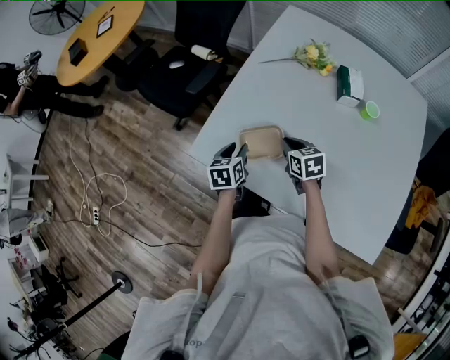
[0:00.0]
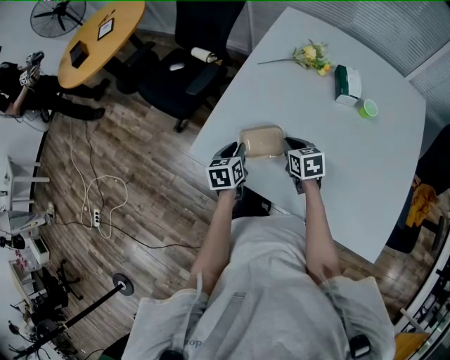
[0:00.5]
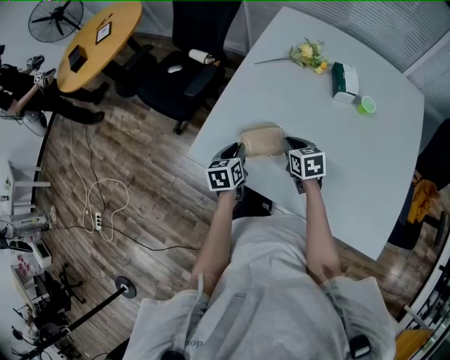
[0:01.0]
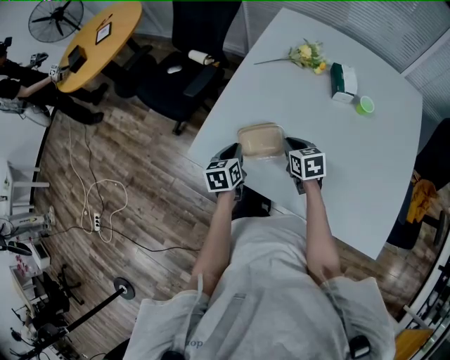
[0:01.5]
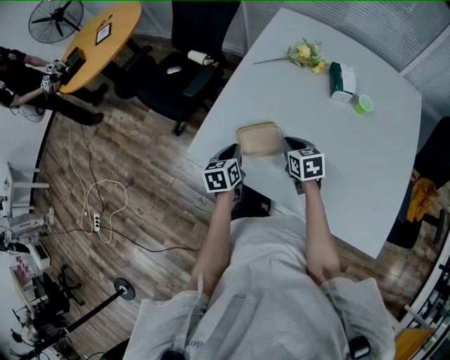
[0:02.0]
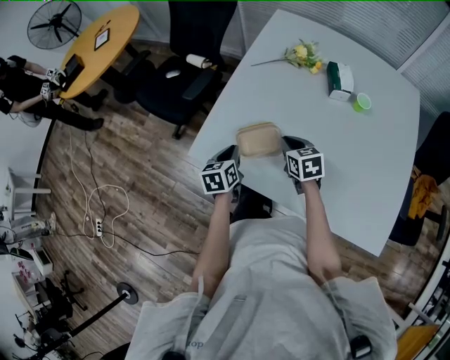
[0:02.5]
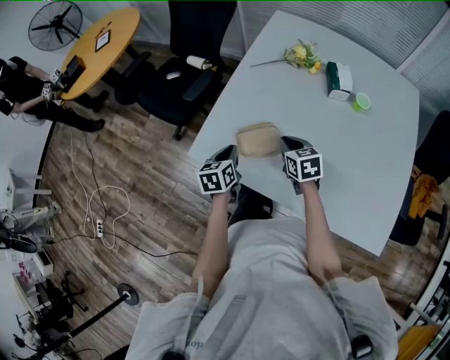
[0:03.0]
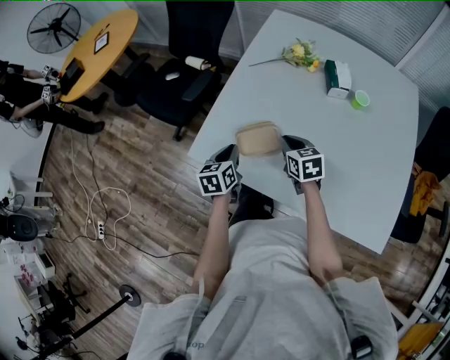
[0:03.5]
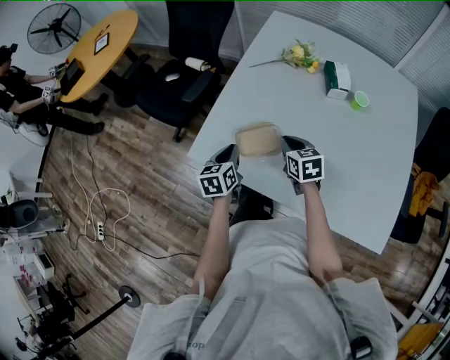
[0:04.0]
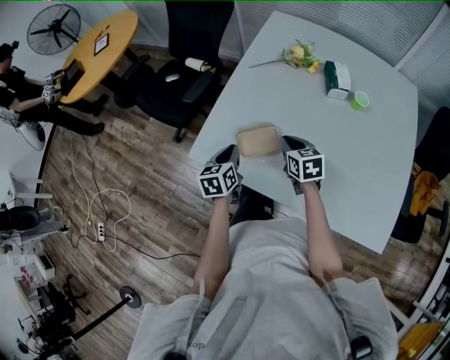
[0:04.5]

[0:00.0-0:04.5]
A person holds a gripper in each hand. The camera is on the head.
0:00.0 to 0:02.0: The left gripper closes.
0:02.0 to 0:04.5: There are only small adjustments of the grippers.

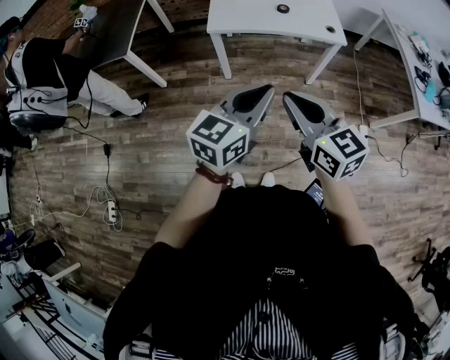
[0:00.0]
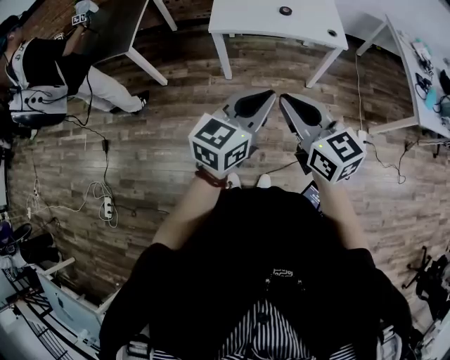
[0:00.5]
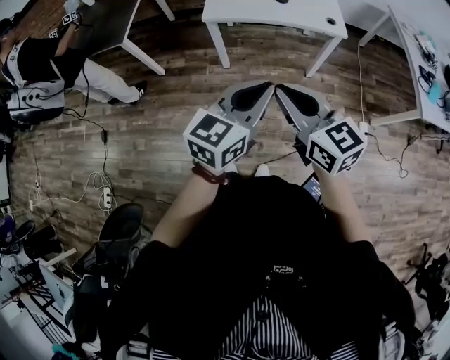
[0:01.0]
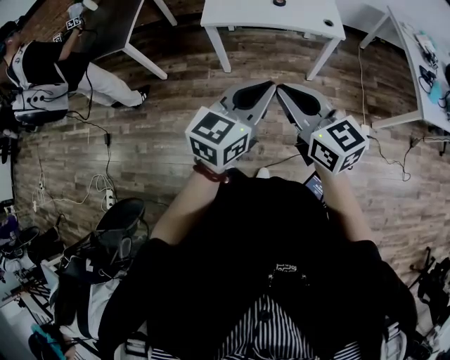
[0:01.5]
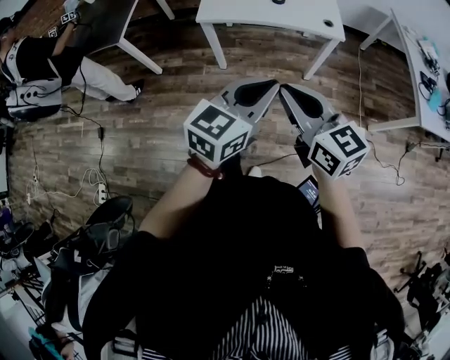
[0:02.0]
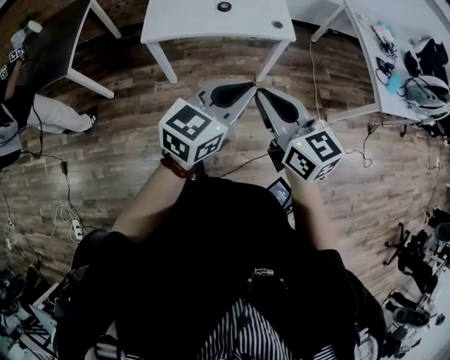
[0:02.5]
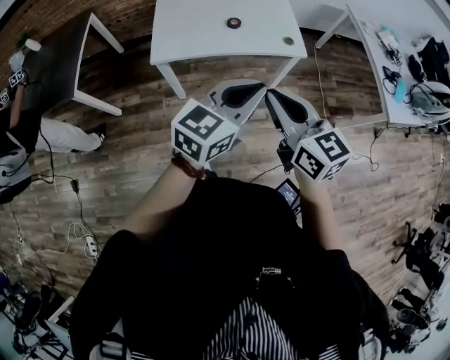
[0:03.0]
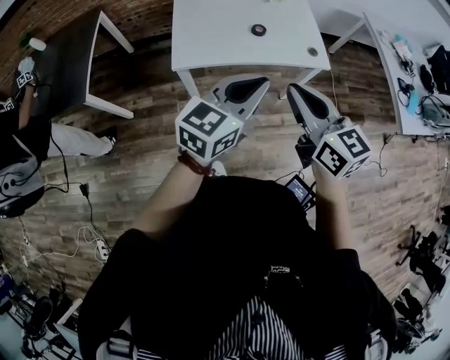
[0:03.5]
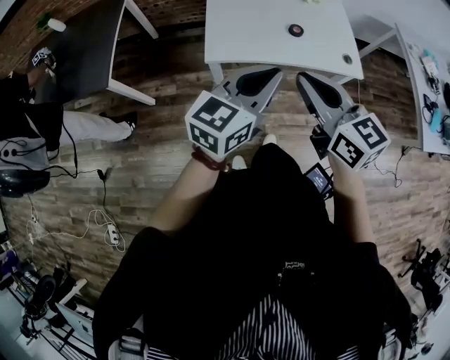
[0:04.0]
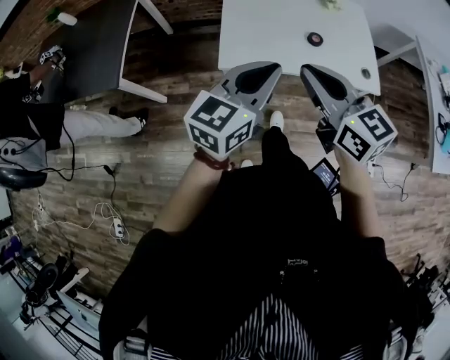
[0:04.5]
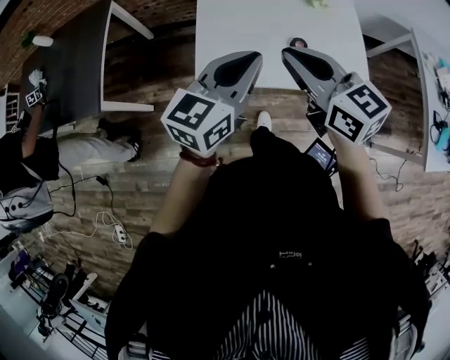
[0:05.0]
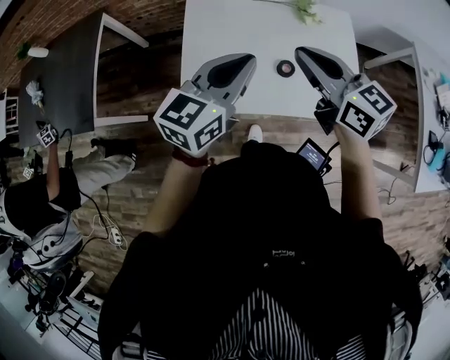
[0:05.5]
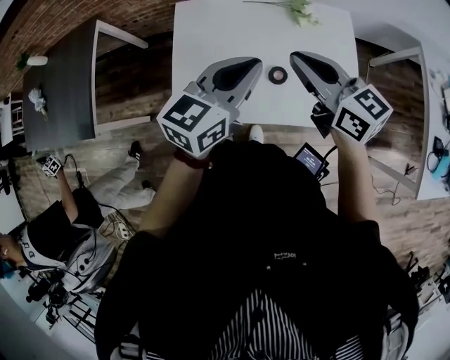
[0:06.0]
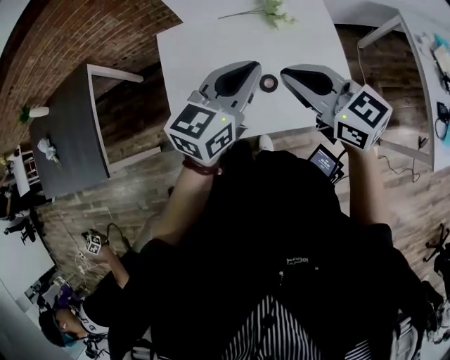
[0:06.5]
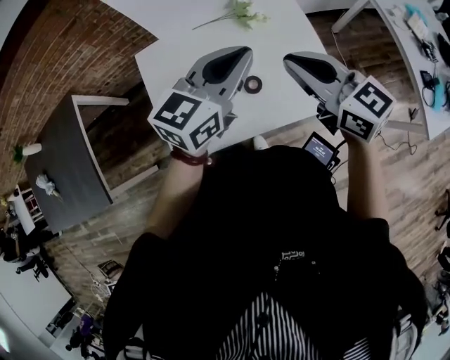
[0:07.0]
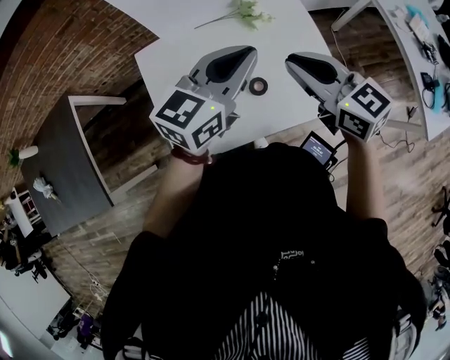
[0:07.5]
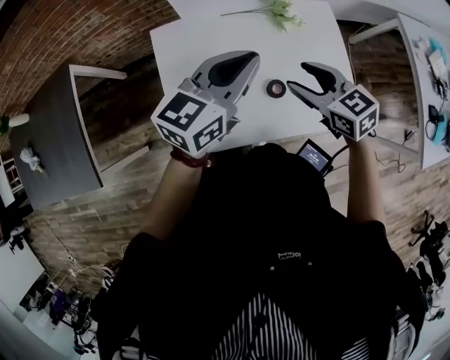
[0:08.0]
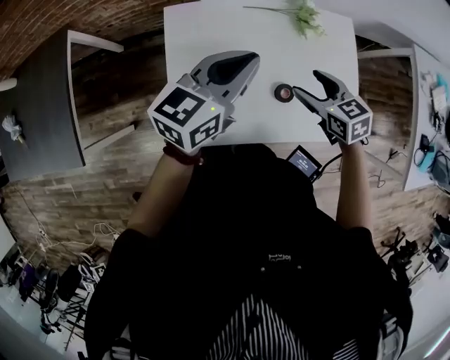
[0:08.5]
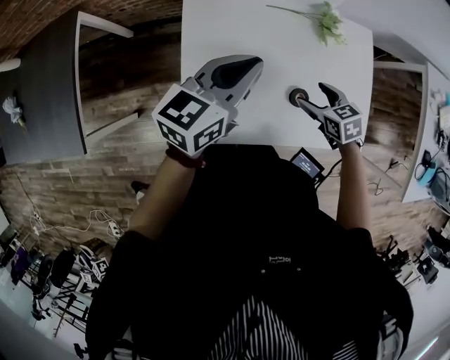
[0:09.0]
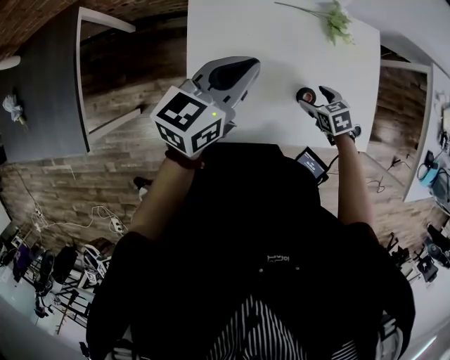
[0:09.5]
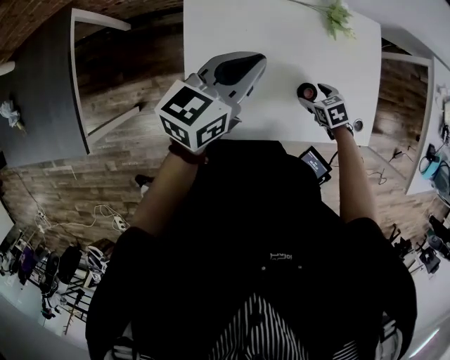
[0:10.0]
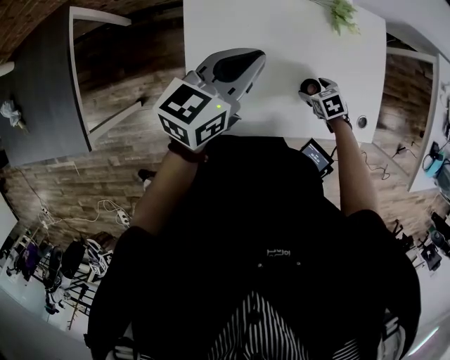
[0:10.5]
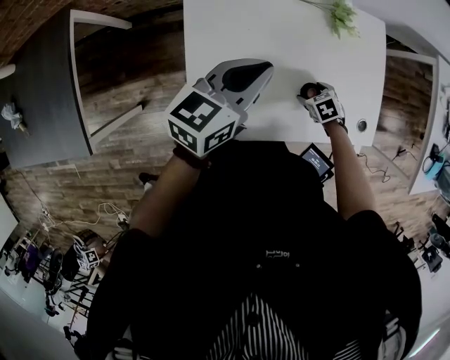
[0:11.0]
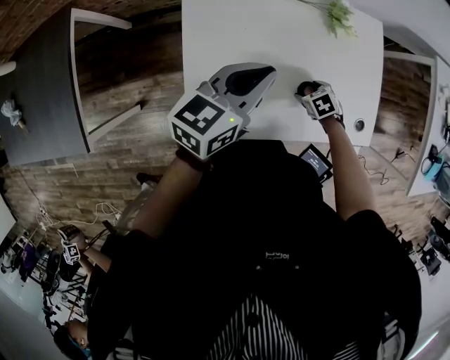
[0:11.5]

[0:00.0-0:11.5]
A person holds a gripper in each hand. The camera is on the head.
0:00.0 to 0:02.0: The two grippers go roughly 10 cm to the right.
0:02.0 to 0:04.0: The two grippers go about 35 cm forward and to the left.
0:04.0 to 0:06.0: The right gripper goes roughly 40 cm forward and to the right, while the left gripper travels forward by about 35 cm.
0:06.0 to 0:07.5: The left gripper moves forward and to the right, some 10 cm. Meanwhile the right gripper moves about 5 cm.
0:07.5 to 0:09.5: The right gripper goes approximately 35 cm downward, points its fingers roughly 50 degrees further downward, and opens its fingers. Meanwhile the left gripper moves to the left and downward, roughly 25 cm, and changes its angle by roughly 20 degrees.
0:09.5 to 0:11.5: The right gripper travels downward by roughly 10 cm.

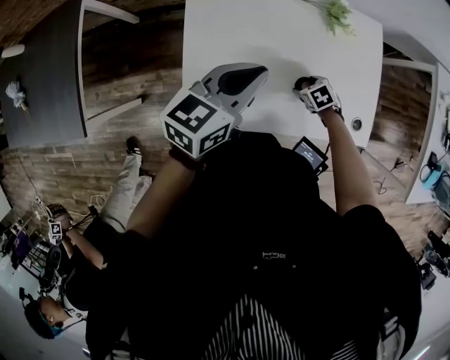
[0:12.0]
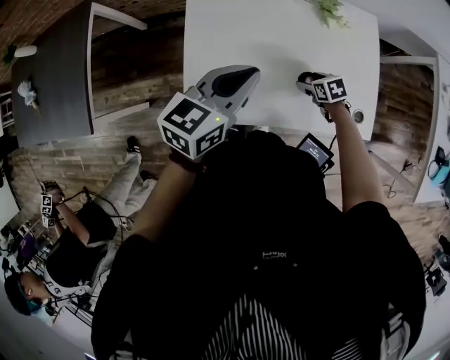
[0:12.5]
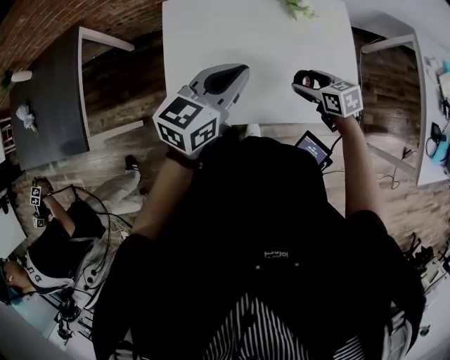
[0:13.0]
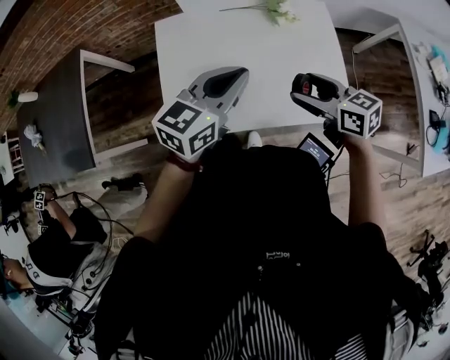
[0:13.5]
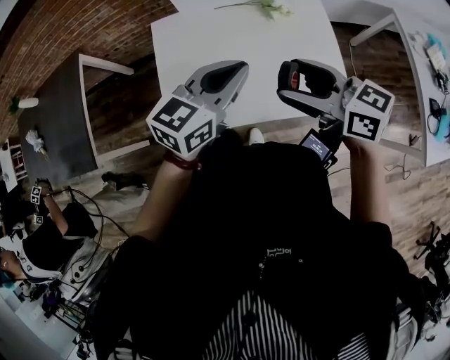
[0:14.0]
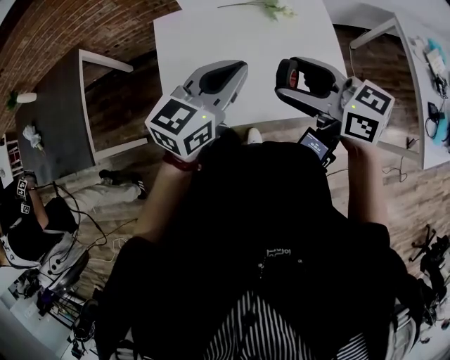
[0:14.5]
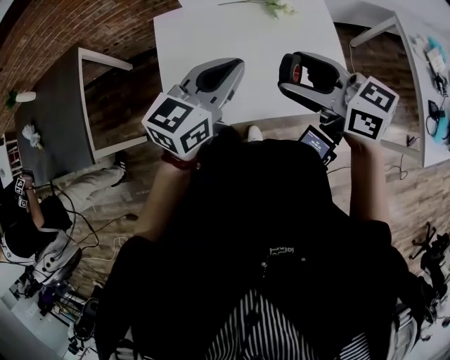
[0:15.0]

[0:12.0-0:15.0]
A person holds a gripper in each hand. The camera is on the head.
0:12.0 to 0:13.5: The right gripper shifts roughly 30 cm upward, and tilts its fingers approximately 50 degrees upward; the left gripper shifts by roughly 15 cm.
0:13.5 to 0:15.0: The right gripper is displaced upward and to the left by roughly 15 cm.

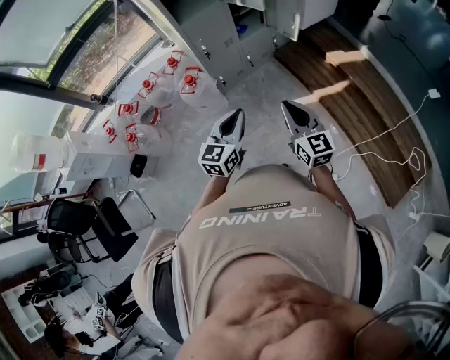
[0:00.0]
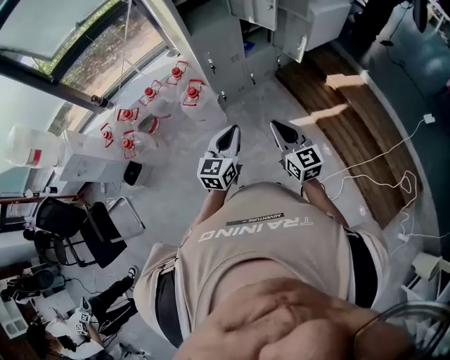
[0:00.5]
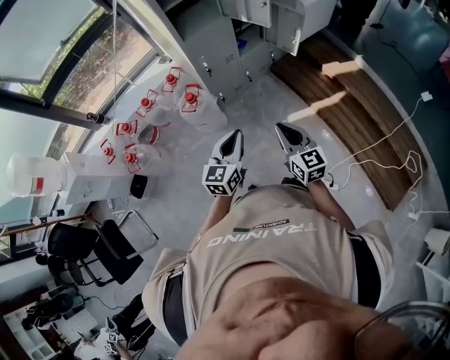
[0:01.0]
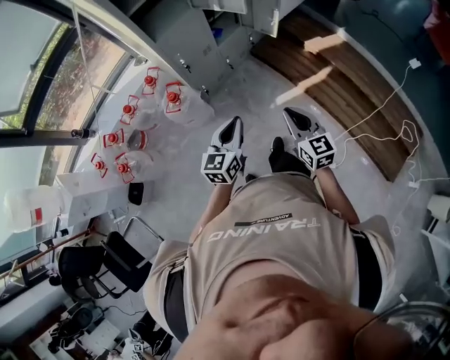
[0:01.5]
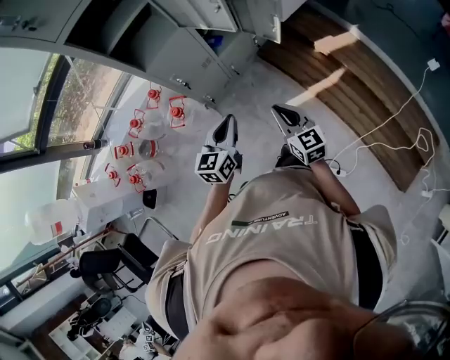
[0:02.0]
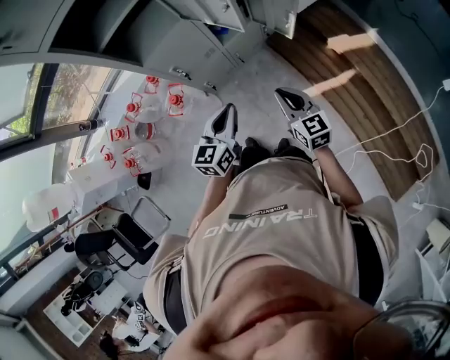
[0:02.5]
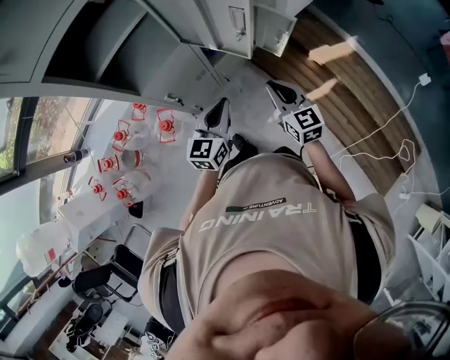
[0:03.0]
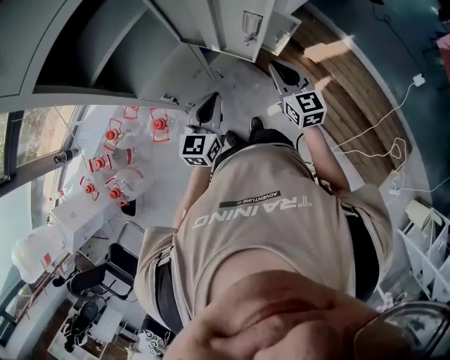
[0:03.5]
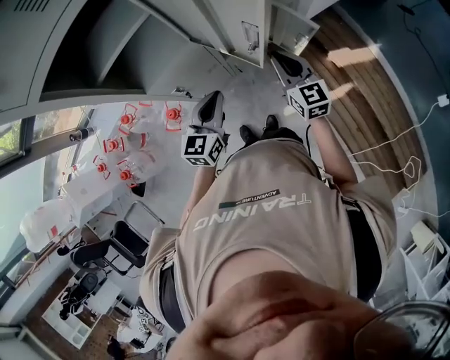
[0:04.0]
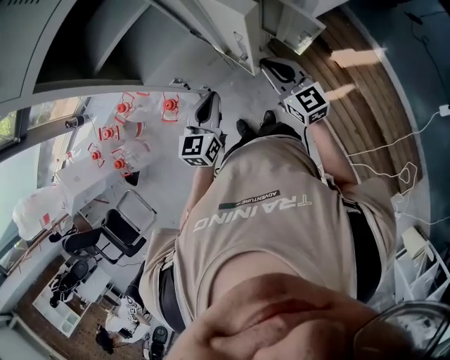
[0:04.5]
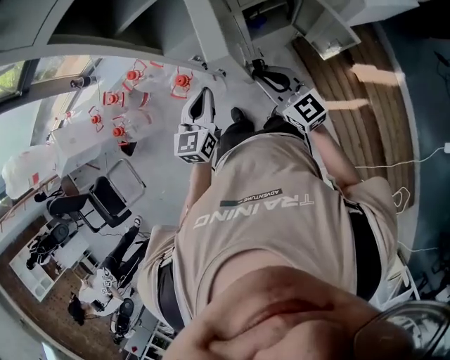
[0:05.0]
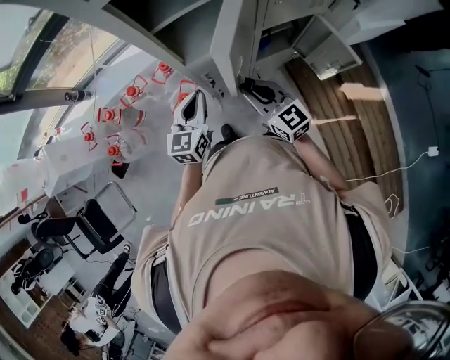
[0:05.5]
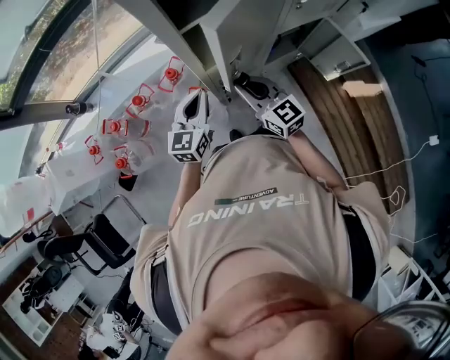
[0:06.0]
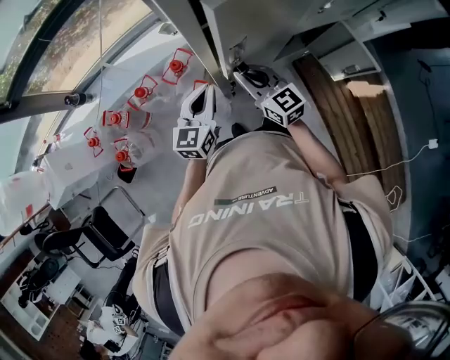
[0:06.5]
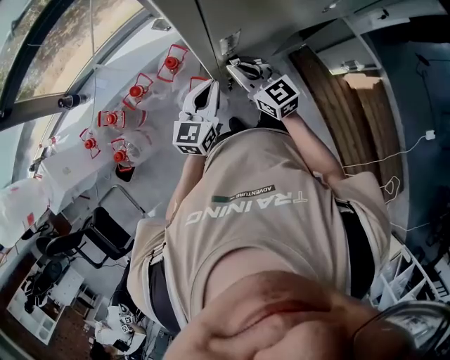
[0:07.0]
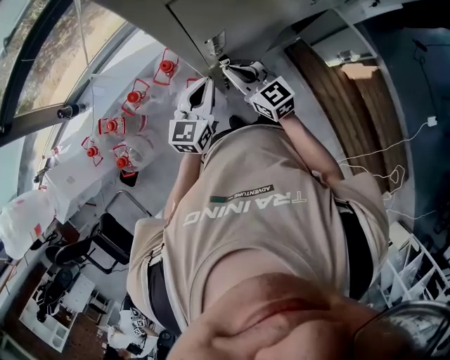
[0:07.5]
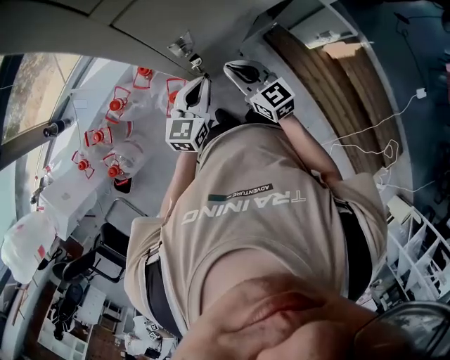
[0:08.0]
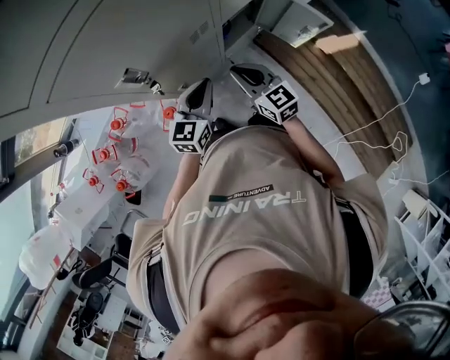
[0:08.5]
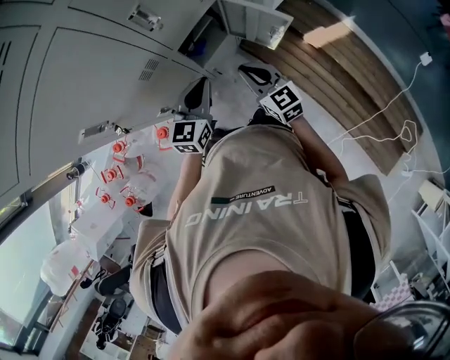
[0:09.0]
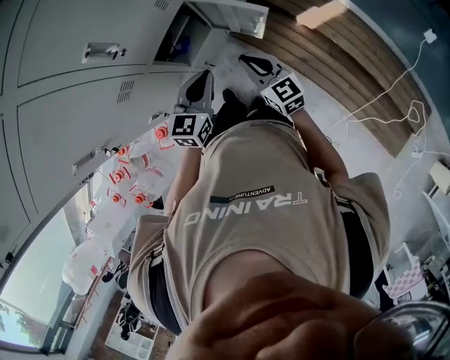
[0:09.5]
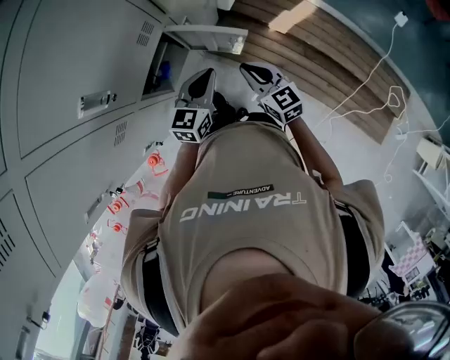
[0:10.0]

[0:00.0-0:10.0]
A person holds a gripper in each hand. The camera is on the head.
0:00.0 to 0:02.0: The right gripper goes approximately 20 cm forward and downward. The left gripper is displaced forward by about 20 cm.
0:02.0 to 0:04.0: Both grippers travel together forward, roughly 30 cm.
0:04.0 to 0:06.0: The right gripper shifts by roughly 35 cm, and changes its angle by roughly 30 degrees, while the left gripper shifts by roughly 25 cm.
0:06.0 to 0:08.0: The right gripper heads downward, covering some 5 cm. The left gripper ends up approximately 5 cm from where it was.
0:08.0 to 0:10.0: Both grippers are carried some 40 cm. The right gripper changes its angle by some 30 degrees. Meanwhile the left gripper swivels roughly 30 degrees.
